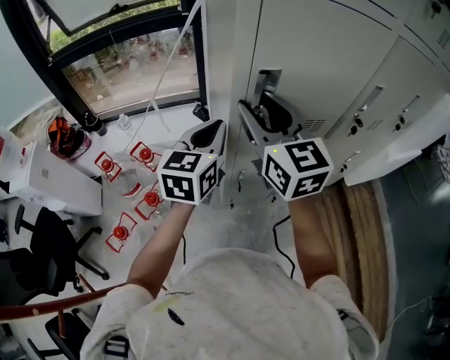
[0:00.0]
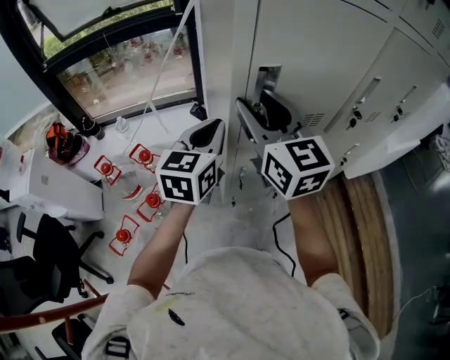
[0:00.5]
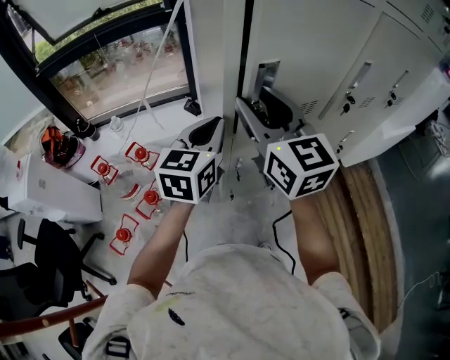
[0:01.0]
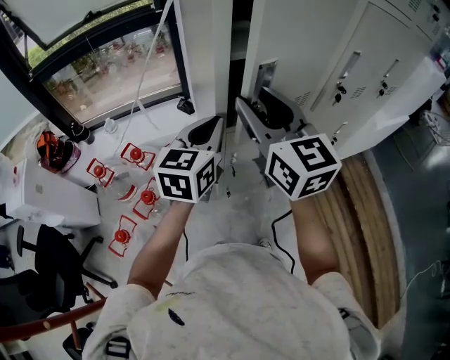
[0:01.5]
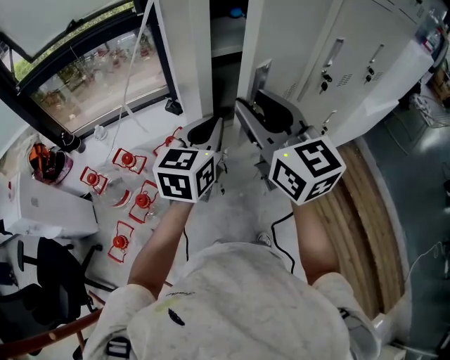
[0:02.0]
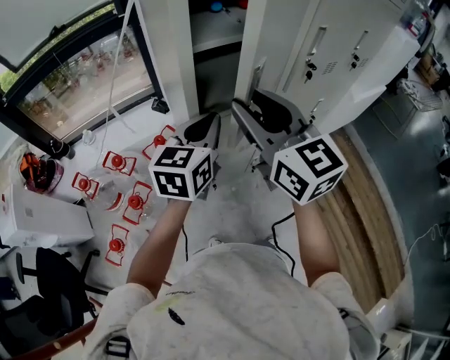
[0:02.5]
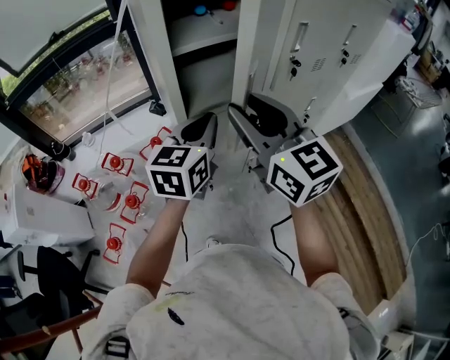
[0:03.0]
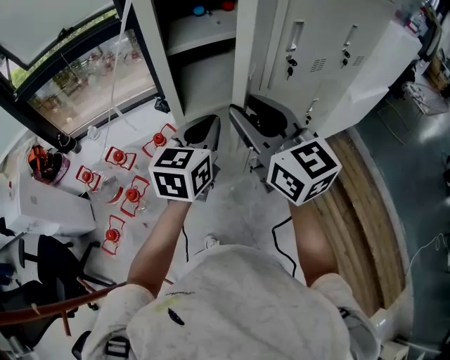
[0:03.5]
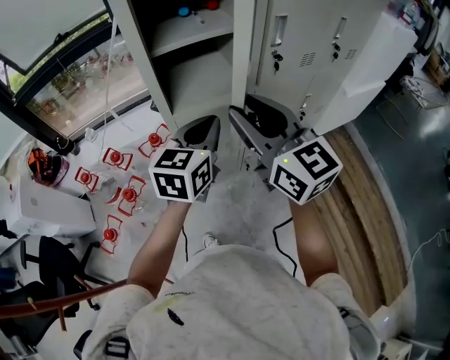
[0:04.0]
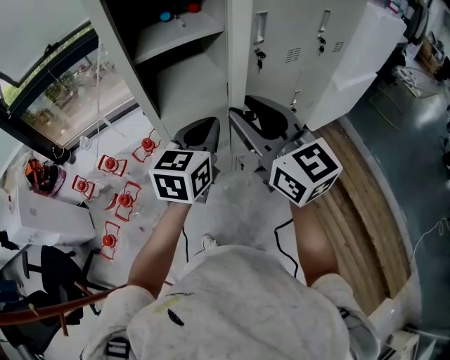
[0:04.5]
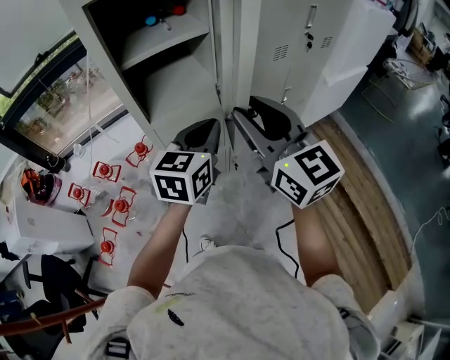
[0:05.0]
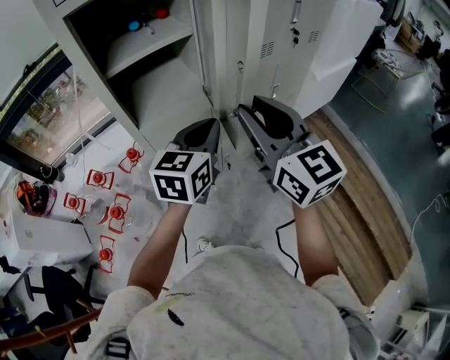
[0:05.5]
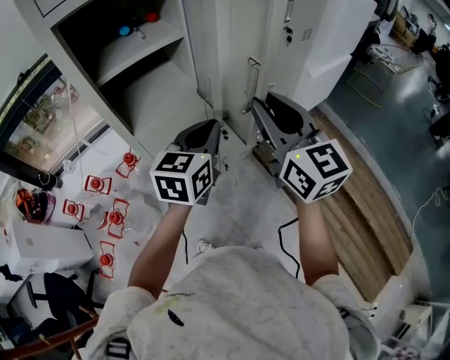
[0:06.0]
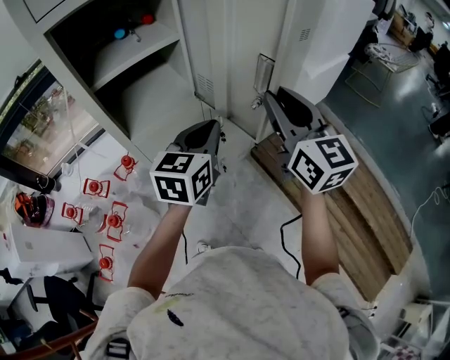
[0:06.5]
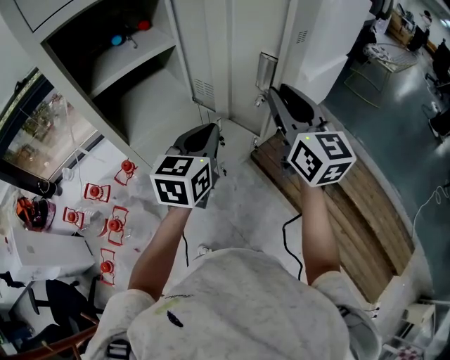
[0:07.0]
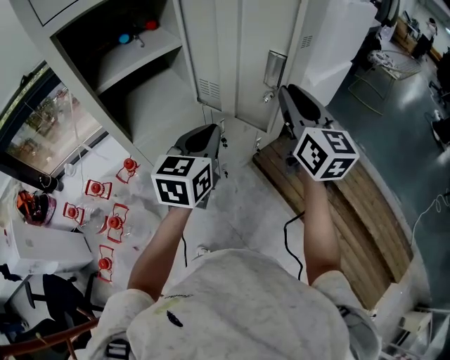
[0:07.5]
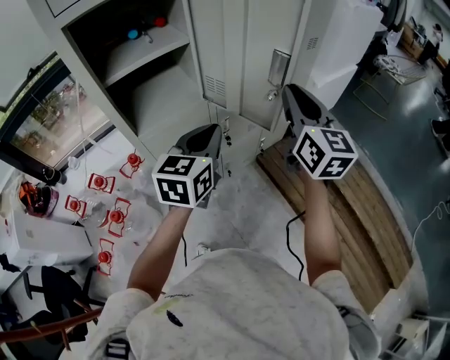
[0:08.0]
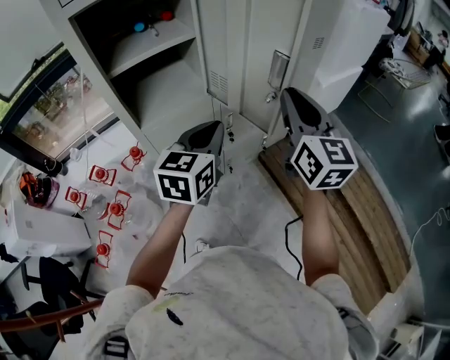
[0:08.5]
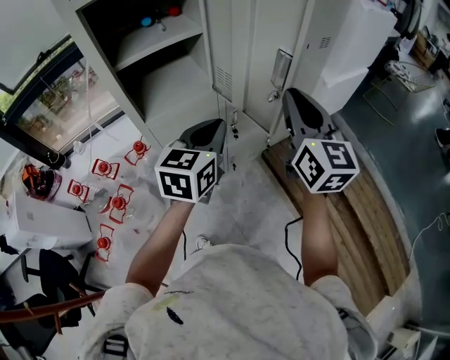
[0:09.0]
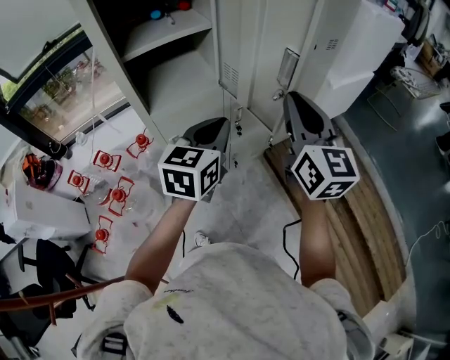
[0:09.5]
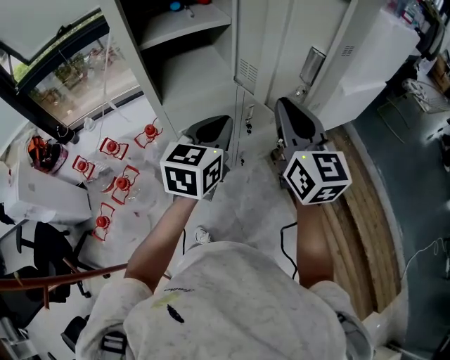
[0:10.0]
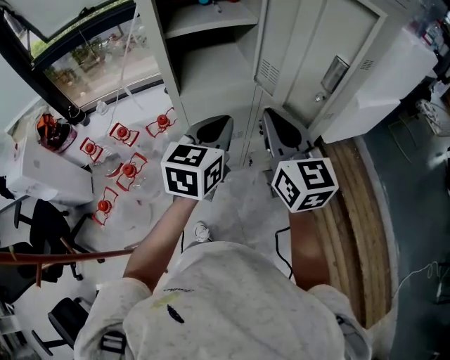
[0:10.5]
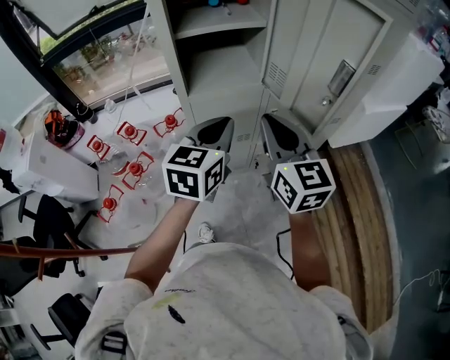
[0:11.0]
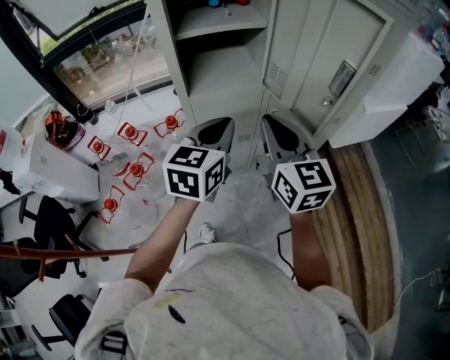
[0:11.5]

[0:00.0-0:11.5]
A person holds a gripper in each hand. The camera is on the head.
0:00.0 to 0:02.0: The right gripper moves backward, roughly 10 cm, while the left gripper moves to the right, roughly 5 cm.
0:02.0 to 0:04.0: Both grippers travel together to the right and backward, about 15 cm.
0:04.0 to 0:06.0: The two grippers go roughly 15 cm to the right. The right gripper rotates about 20 degrees.
0:06.0 to 0:07.5: The right gripper goes some 10 cm to the right and forward.
0:07.5 to 0:09.5: The right gripper is displaced backward by about 5 cm.
0:09.5 to 0:11.5: The left gripper travels to the left by approximately 10 cm. Meanwhile the right gripper goes approximately 15 cm to the left and downward, and changes its angle by some 20 degrees.

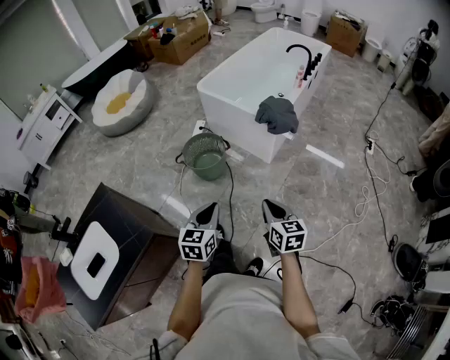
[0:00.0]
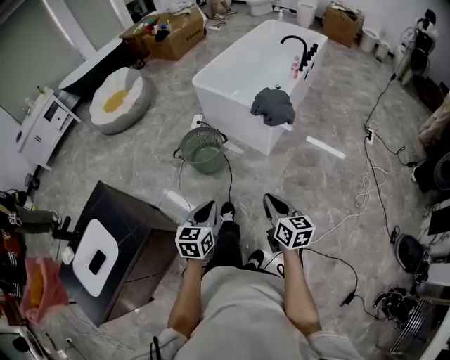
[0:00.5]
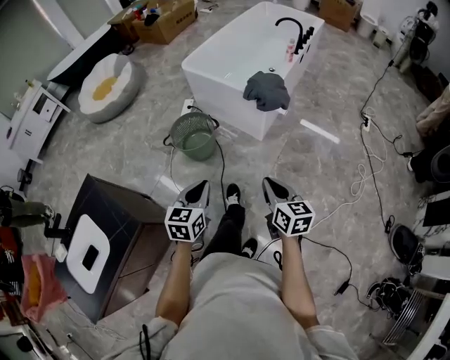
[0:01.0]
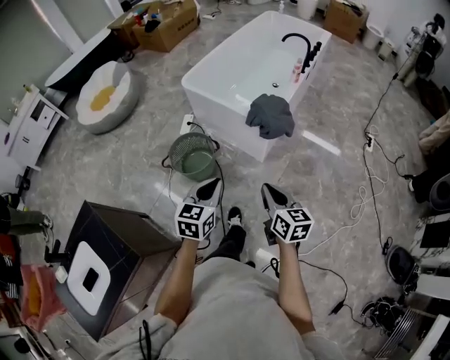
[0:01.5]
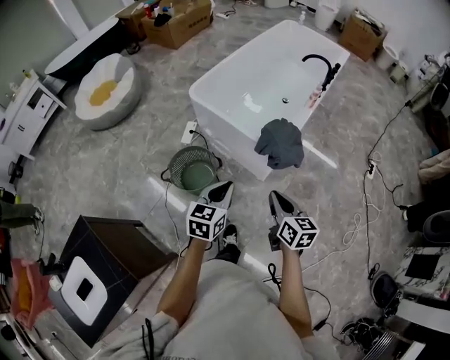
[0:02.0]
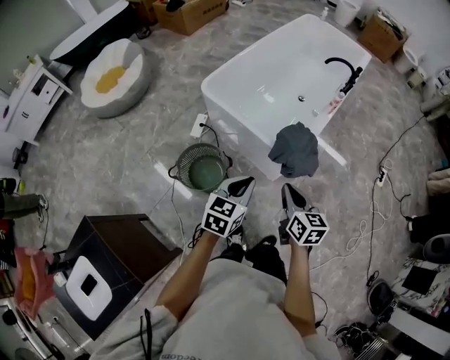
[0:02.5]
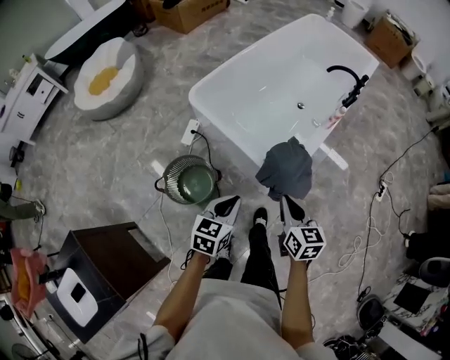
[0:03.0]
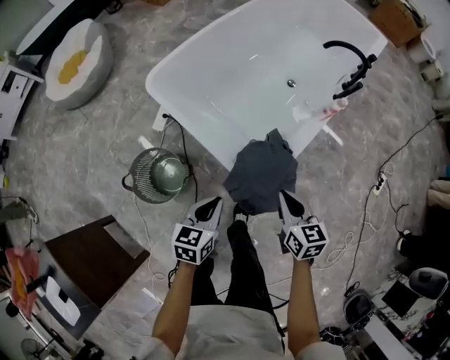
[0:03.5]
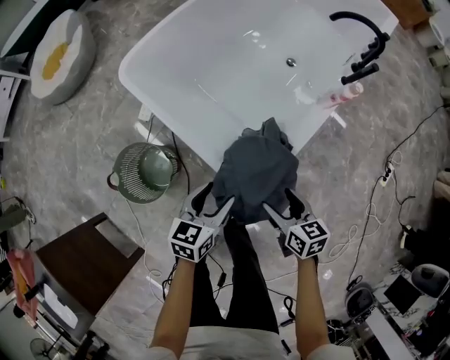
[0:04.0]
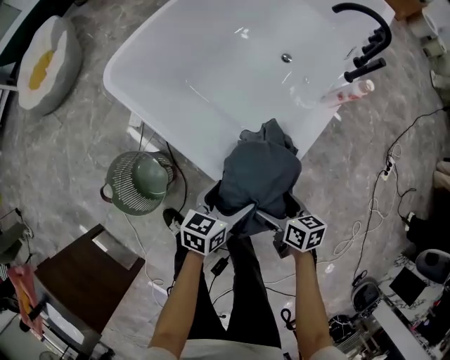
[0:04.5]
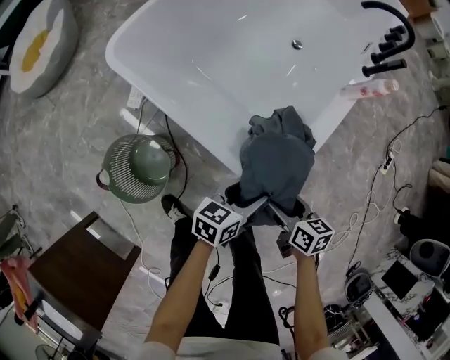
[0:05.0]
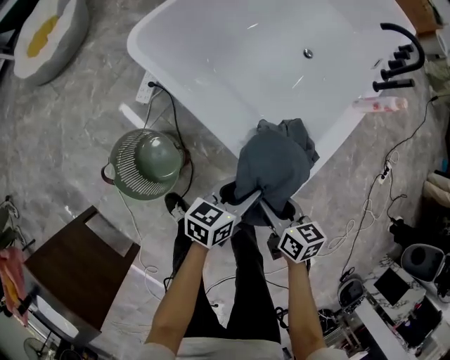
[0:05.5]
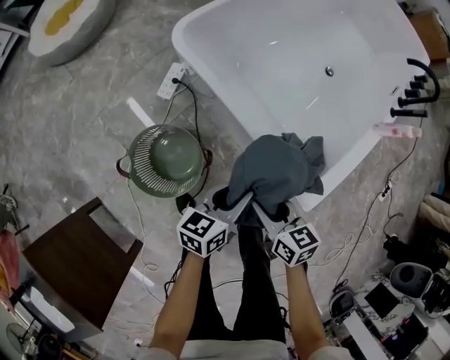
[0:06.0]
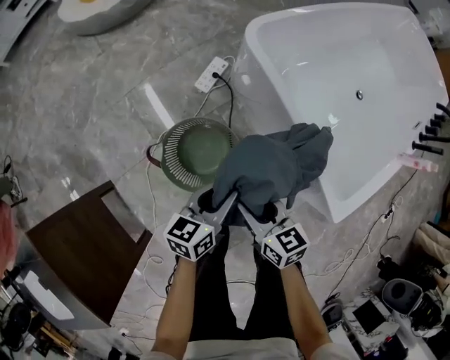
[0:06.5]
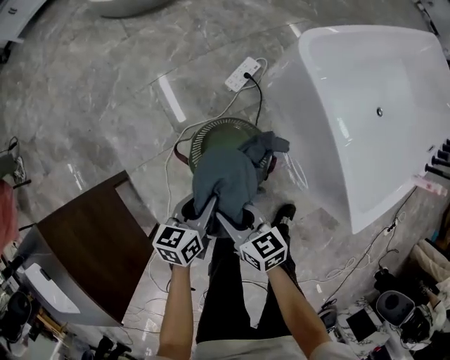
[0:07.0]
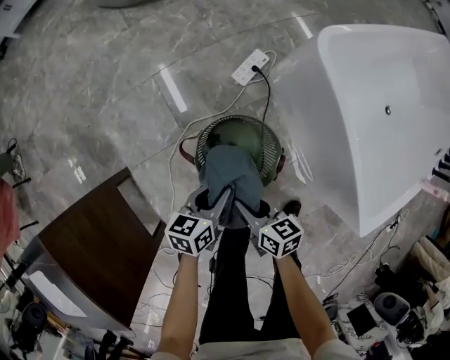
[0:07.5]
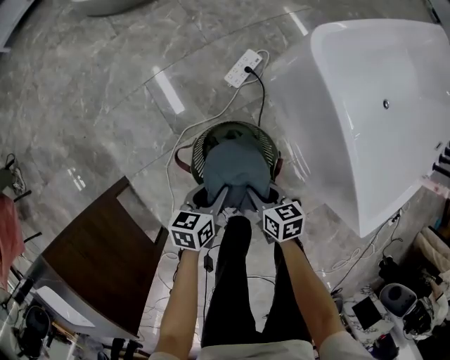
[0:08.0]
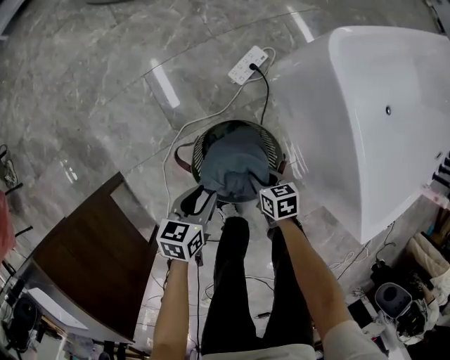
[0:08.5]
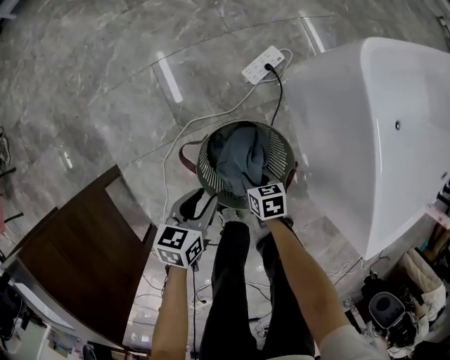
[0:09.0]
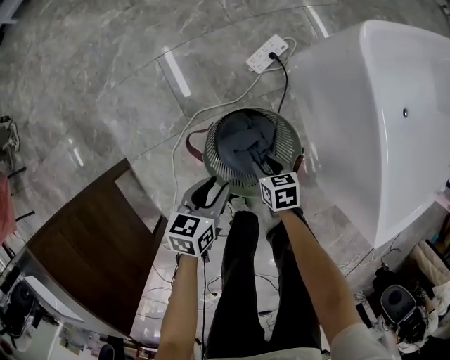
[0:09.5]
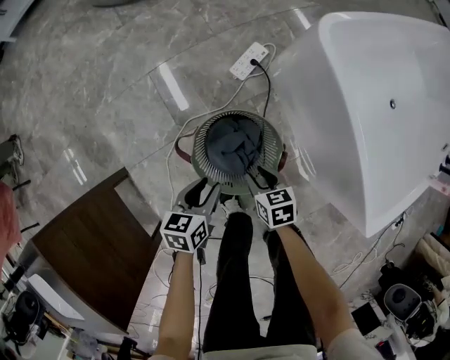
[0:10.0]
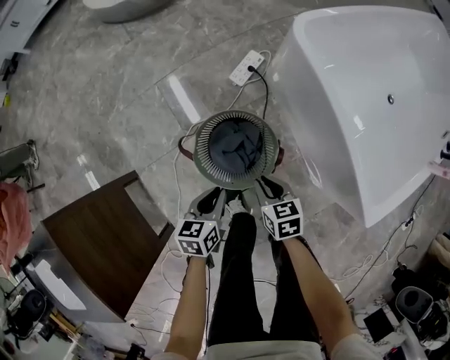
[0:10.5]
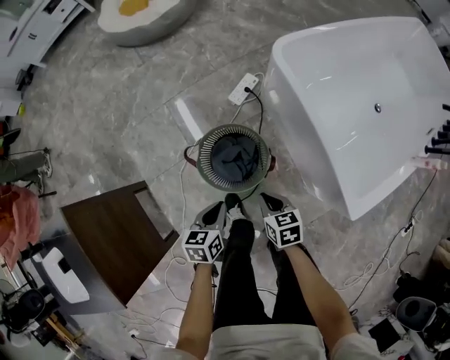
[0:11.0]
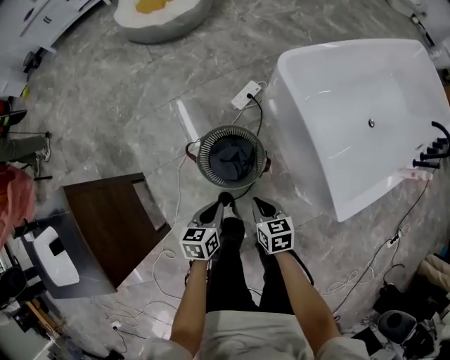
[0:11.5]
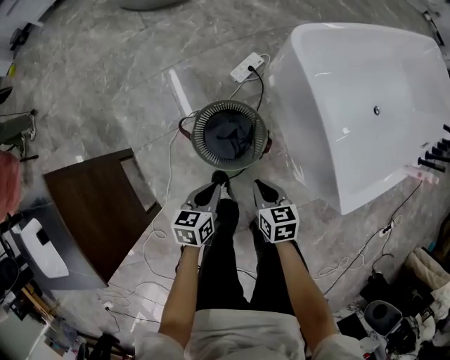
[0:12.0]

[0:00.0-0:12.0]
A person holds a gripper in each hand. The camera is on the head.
0:00.0 to 0:02.0: Both grippers move forward, approximately 35 cm.
0:02.0 to 0:04.0: The two grippers go some 40 cm forward, downward and to the right. The right gripper swivels roughly 20 degrees, and opens up, while the left gripper opens up.
0:04.0 to 0:06.0: The right gripper goes approximately 25 cm to the left, and opens, then closes once more. The left gripper moves to the left, roughly 15 cm, and opens, then closes once more.
0:06.0 to 0:08.0: The left gripper moves about 40 cm, and rotates roughly 30 degrees, while the right gripper ends up roughly 35 cm from where it was, and turns by some 20 degrees.
0:08.0 to 0:10.0: The right gripper moves approximately 15 cm downward and comes back.
0:10.0 to 0:12.0: Both grippers travel together upward and backward, approximately 15 cm.

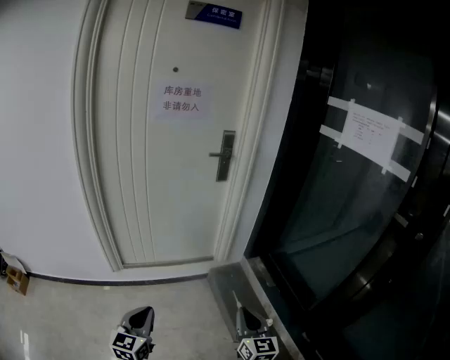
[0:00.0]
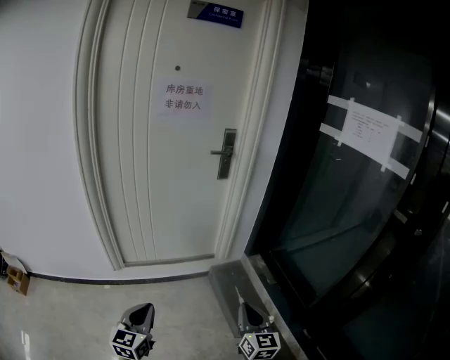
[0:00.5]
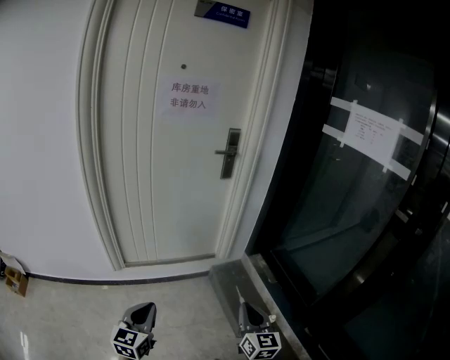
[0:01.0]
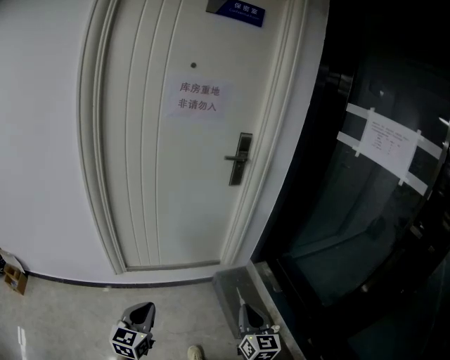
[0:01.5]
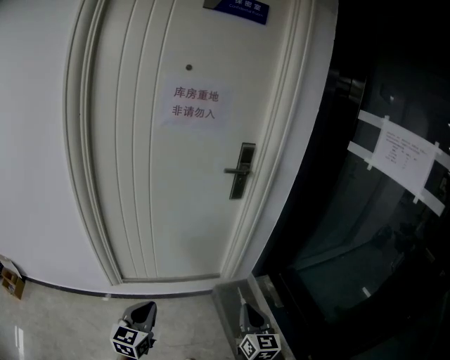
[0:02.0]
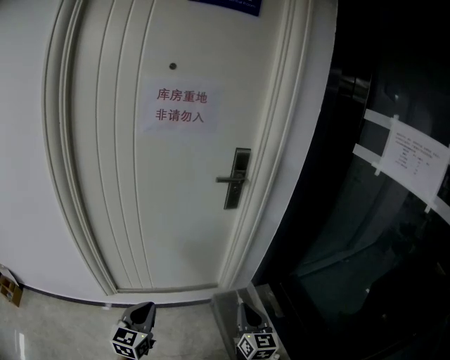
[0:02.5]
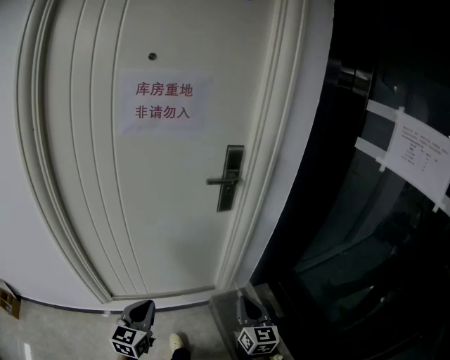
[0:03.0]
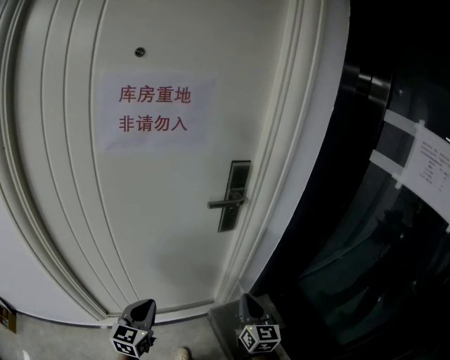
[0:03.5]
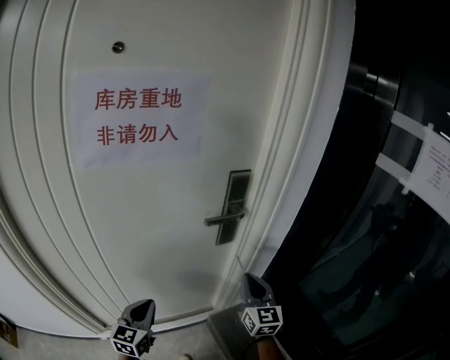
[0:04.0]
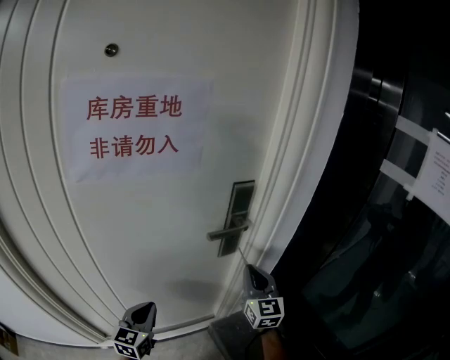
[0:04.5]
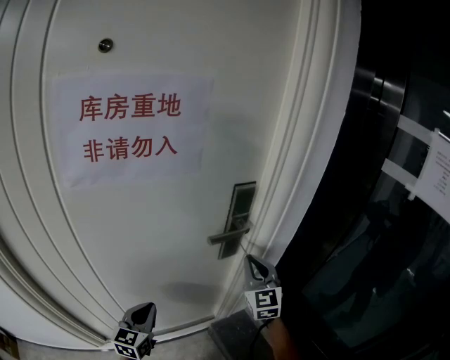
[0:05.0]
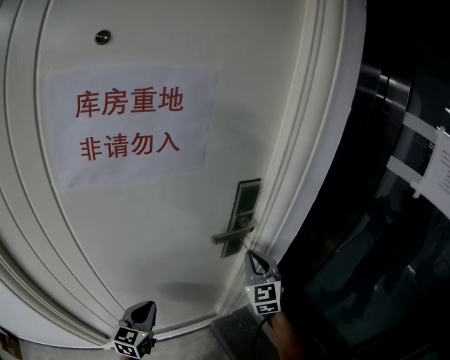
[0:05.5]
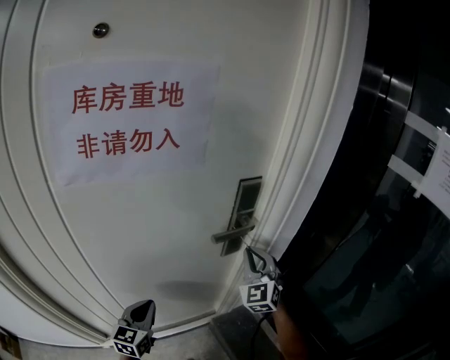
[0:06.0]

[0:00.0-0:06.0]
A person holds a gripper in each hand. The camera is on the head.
0:00.0 to 0:02.0: Both grippers move forward, approximately 20 cm.
0:02.0 to 0:04.0: The pair of grippers is taken forward, approximately 40 cm.
0:04.0 to 0:06.0: The left gripper shifts about 10 cm forward; the right gripper heads forward, covering roughly 10 cm, and swivels about 40 degrees.
